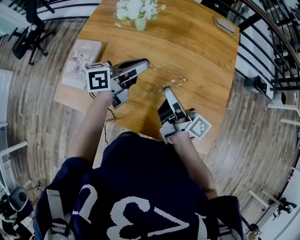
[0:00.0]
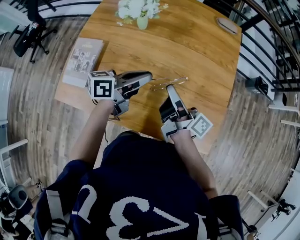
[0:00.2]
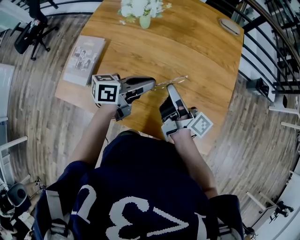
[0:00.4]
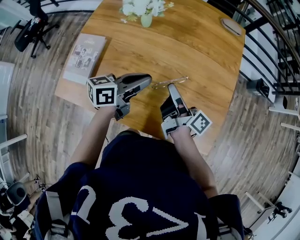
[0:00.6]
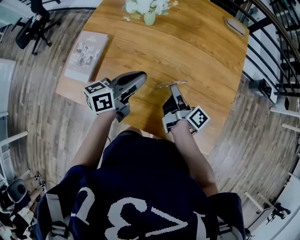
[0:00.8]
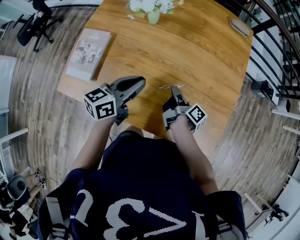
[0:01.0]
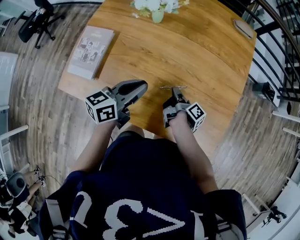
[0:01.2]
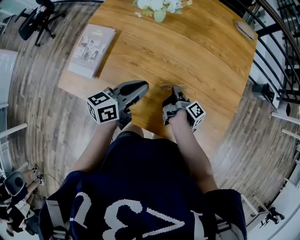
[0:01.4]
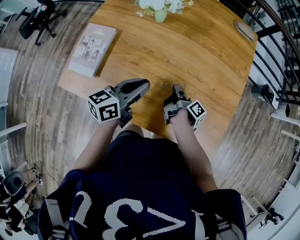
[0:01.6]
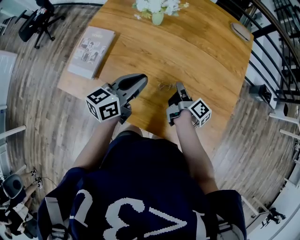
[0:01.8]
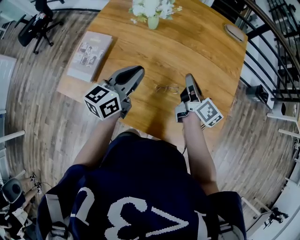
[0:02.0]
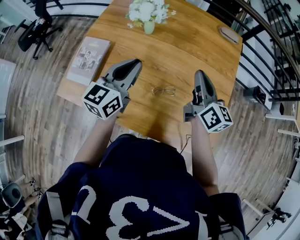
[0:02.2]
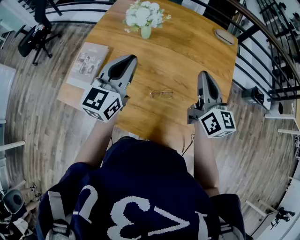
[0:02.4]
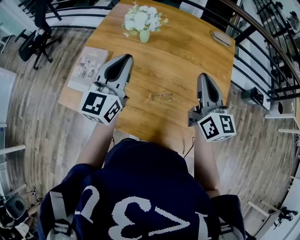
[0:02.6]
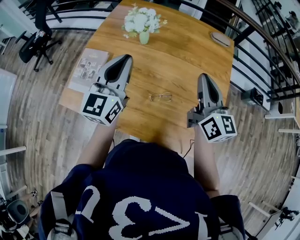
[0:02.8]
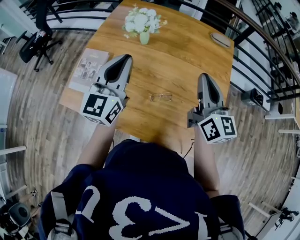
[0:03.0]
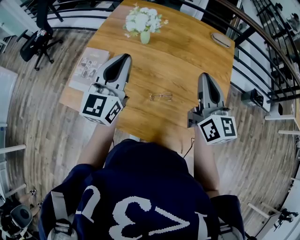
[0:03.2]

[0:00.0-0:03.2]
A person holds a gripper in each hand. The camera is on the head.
0:00.0 to 0:01.6: The right gripper goes about 20 cm downward, and angles its fingers downward, by roughly 30 degrees; the left gripper travels backward and downward by about 10 cm.
0:01.6 to 0:03.2: The left gripper moves upward, some 20 cm, and turns by roughly 50 degrees. Meanwhile the right gripper goes roughly 35 cm upward, and rolls counterclockwise, seen from behind, by roughly 80 degrees.

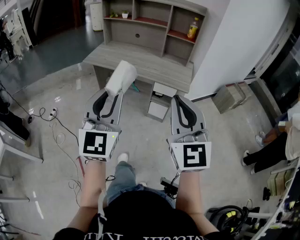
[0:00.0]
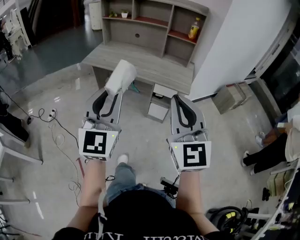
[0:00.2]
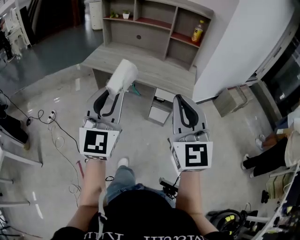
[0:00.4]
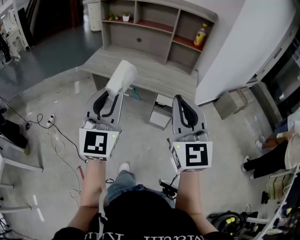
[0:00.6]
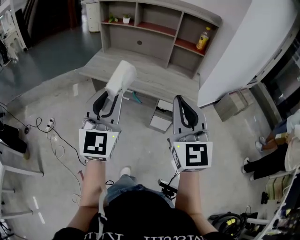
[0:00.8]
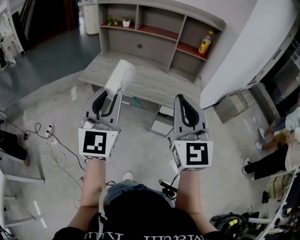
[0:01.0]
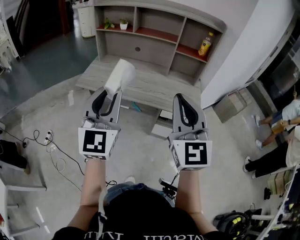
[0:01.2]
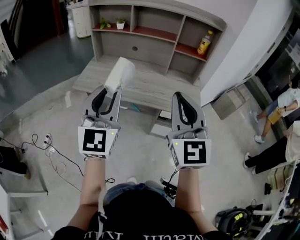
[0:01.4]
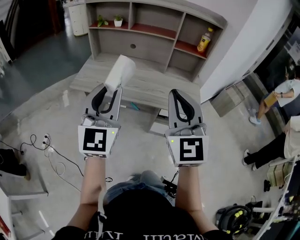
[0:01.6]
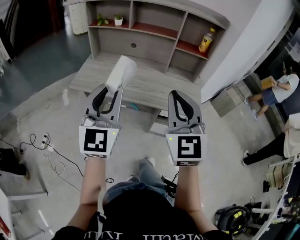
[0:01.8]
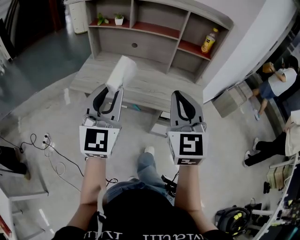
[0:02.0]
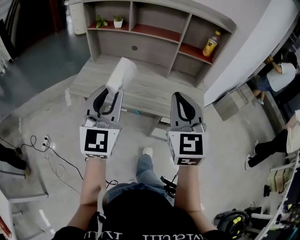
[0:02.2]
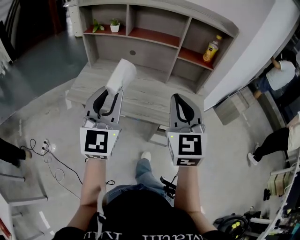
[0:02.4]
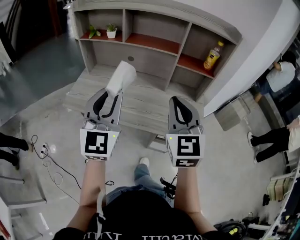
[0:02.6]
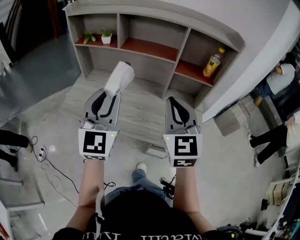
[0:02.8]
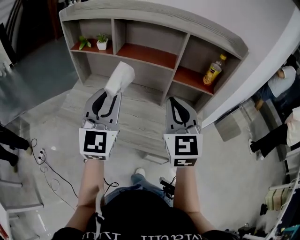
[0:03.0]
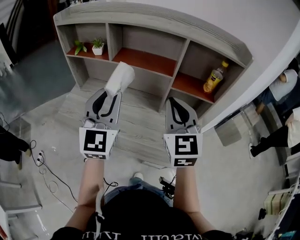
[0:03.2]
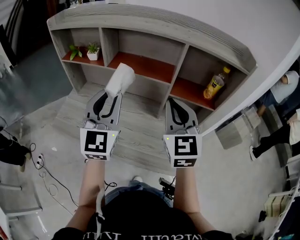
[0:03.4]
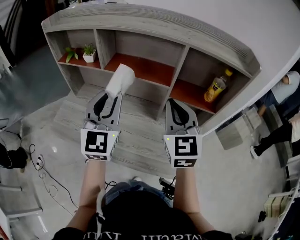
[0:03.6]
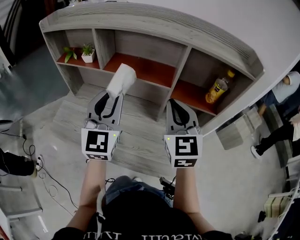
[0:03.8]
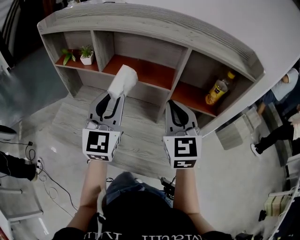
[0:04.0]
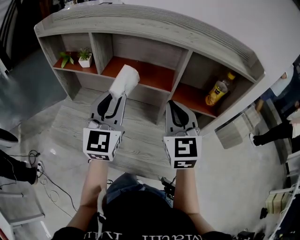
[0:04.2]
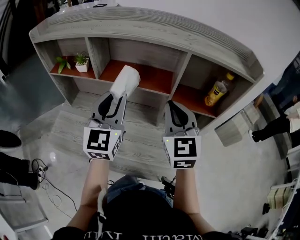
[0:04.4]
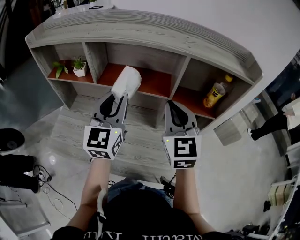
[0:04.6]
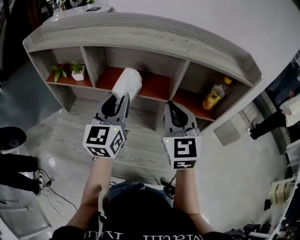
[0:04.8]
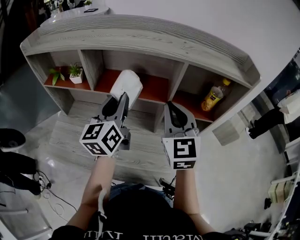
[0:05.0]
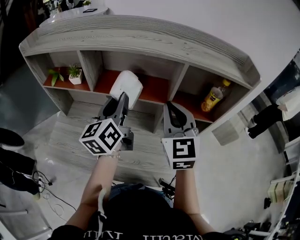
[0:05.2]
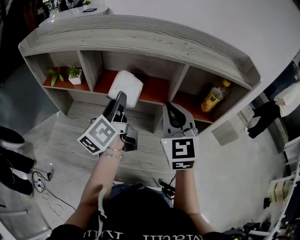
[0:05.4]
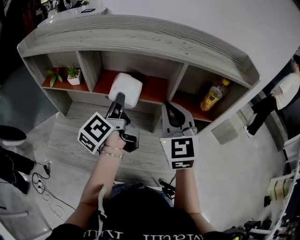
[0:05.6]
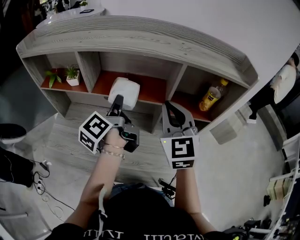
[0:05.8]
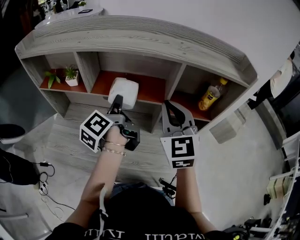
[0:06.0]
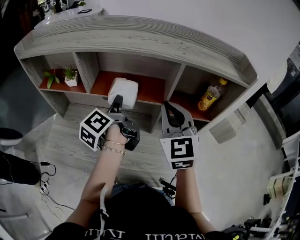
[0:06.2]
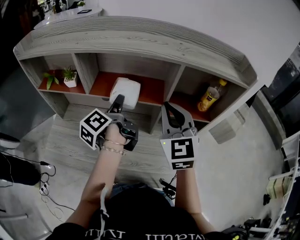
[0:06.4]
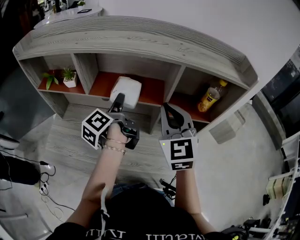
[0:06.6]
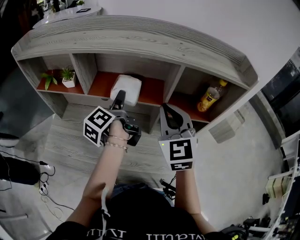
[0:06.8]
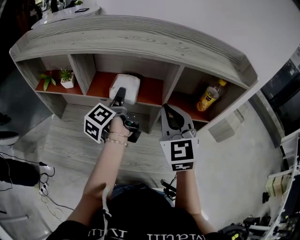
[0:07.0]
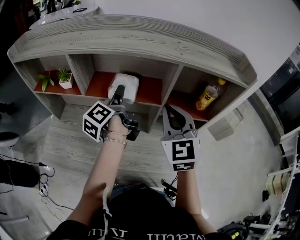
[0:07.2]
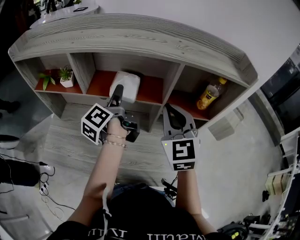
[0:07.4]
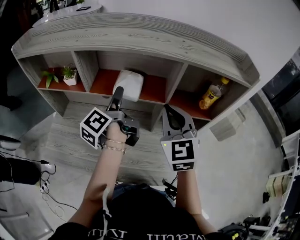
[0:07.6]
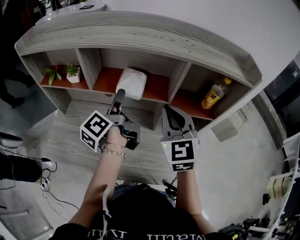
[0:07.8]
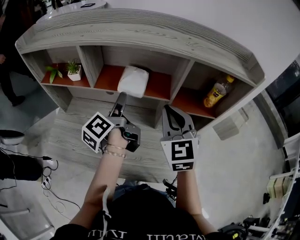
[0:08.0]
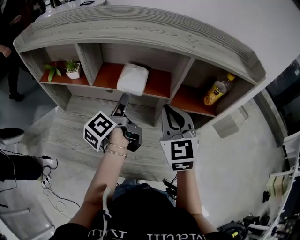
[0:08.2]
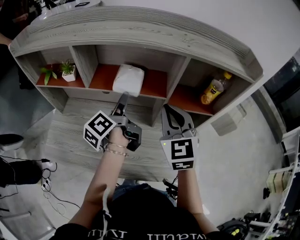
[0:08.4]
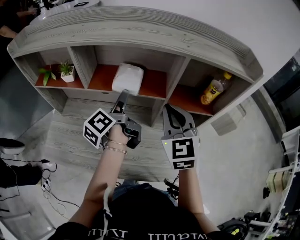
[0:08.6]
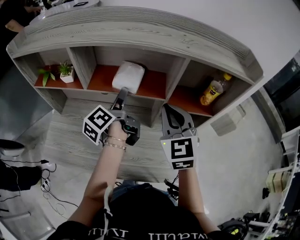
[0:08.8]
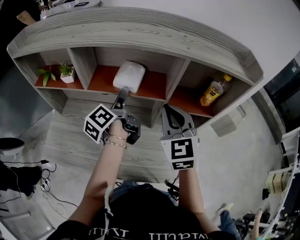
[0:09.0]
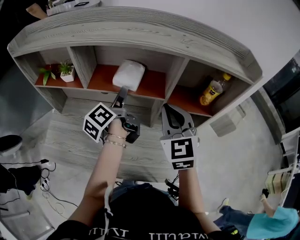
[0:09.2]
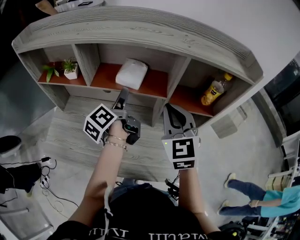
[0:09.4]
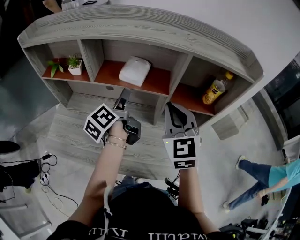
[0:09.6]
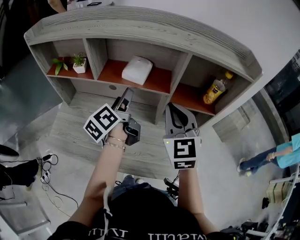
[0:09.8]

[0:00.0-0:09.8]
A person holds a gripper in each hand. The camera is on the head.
0:00.0 to 0:01.4: Both grippers travel together forward, some 30 cm.
0:01.4 to 0:02.8: The two grippers go about 25 cm forward.
0:02.8 to 0:04.2: Both grippers travel together forward, about 20 cm.
0:04.2 to 0:05.6: The left gripper moves forward, about 10 cm, and rolls counterclockwise, seen from behind, by approximately 80 degrees.
0:05.6 to 0:07.0: The left gripper heads downward and forward, covering approximately 10 cm, and opens up.
0:07.0 to 0:09.8: There are only small adjustments of the grippers.

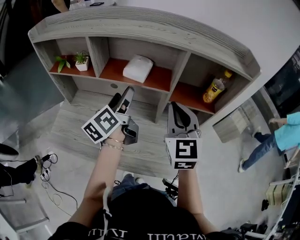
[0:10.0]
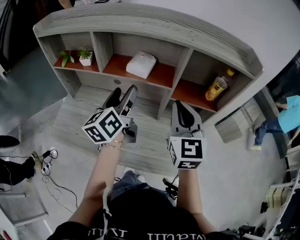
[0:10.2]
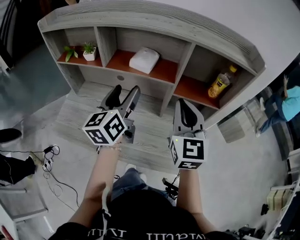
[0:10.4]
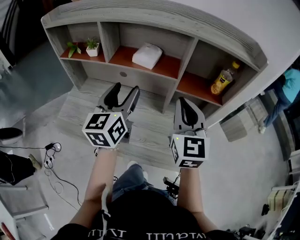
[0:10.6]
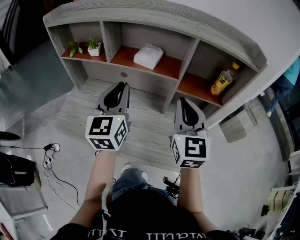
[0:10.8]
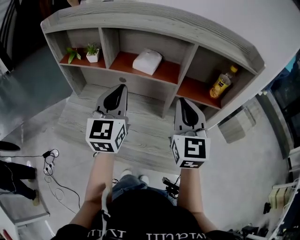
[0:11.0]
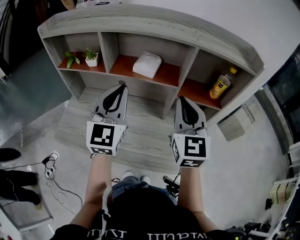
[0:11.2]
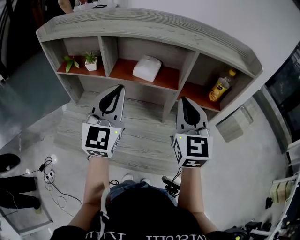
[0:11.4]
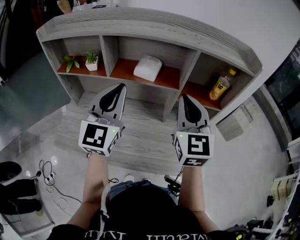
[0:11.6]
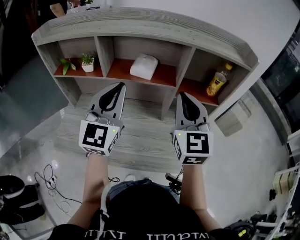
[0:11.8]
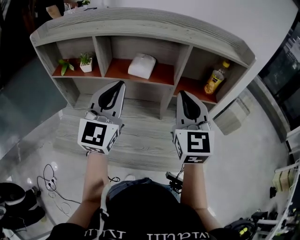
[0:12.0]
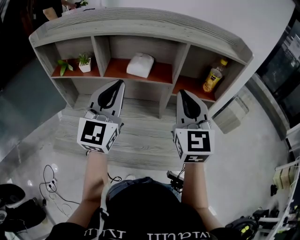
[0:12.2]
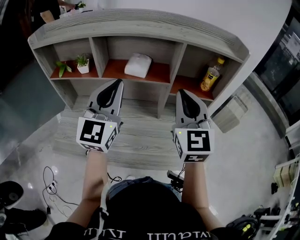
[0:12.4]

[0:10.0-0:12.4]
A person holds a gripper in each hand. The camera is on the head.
0:10.0 to 0:11.2: The left gripper is displaced upward and backward by about 10 cm, twists some 60 degrees clockwise, seen from behind, and closes up.
0:11.2 to 0:12.4: The grippers move only a little.

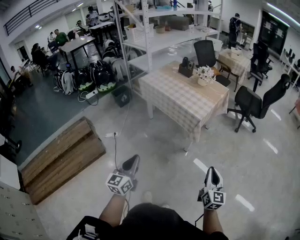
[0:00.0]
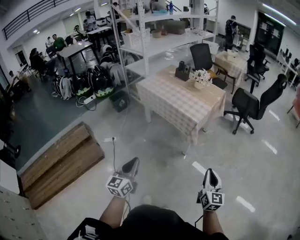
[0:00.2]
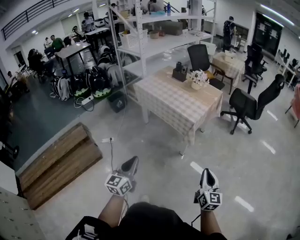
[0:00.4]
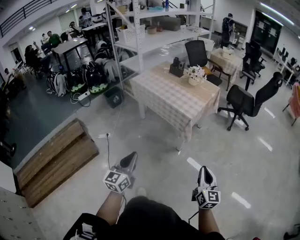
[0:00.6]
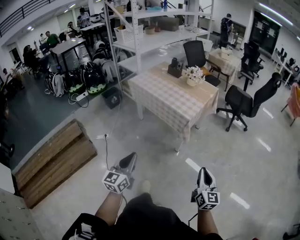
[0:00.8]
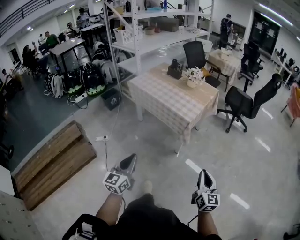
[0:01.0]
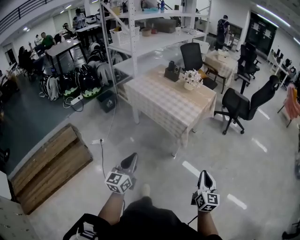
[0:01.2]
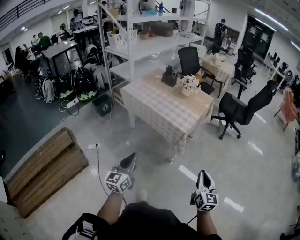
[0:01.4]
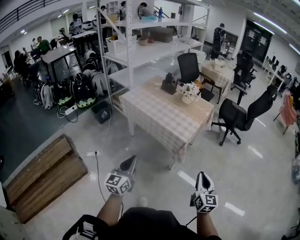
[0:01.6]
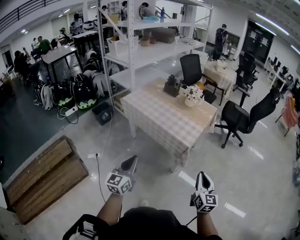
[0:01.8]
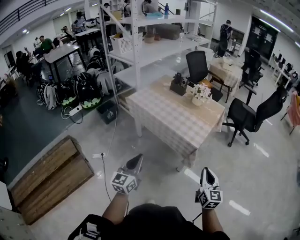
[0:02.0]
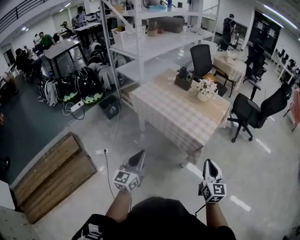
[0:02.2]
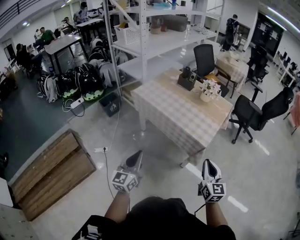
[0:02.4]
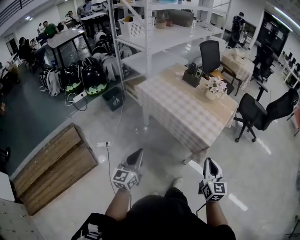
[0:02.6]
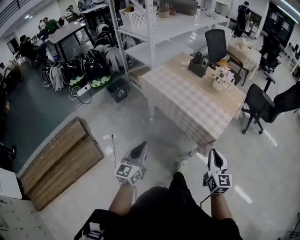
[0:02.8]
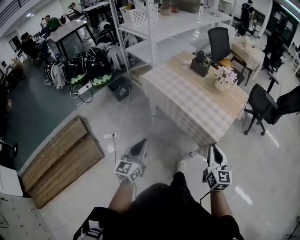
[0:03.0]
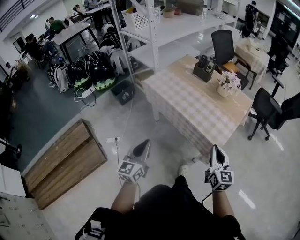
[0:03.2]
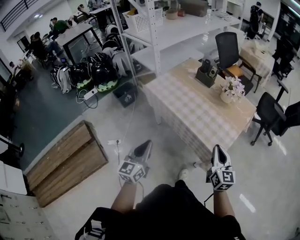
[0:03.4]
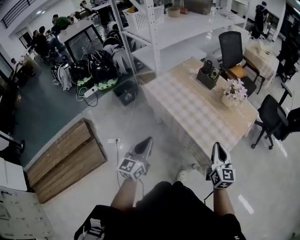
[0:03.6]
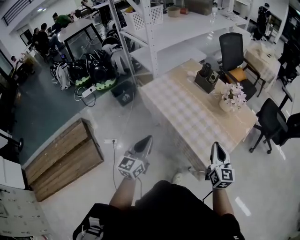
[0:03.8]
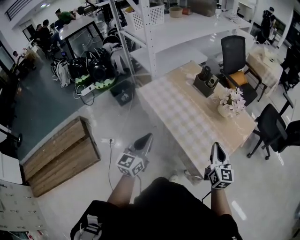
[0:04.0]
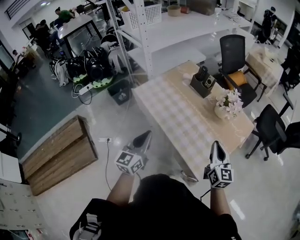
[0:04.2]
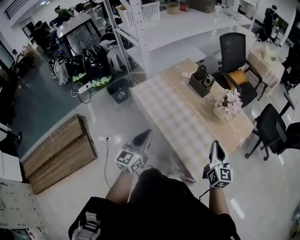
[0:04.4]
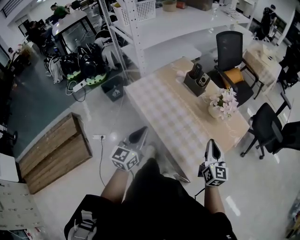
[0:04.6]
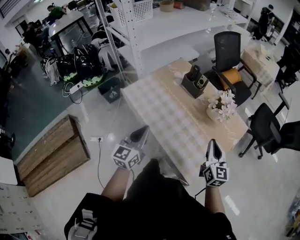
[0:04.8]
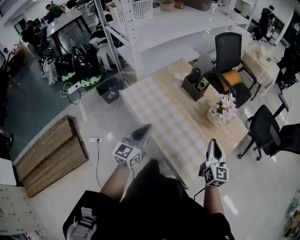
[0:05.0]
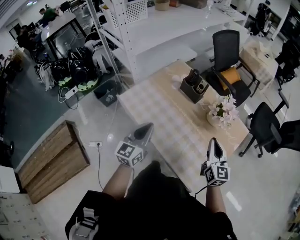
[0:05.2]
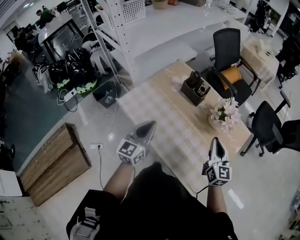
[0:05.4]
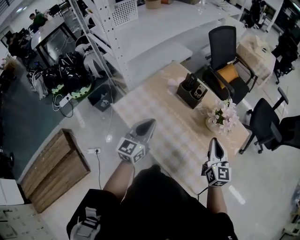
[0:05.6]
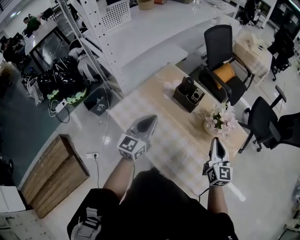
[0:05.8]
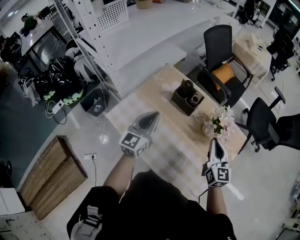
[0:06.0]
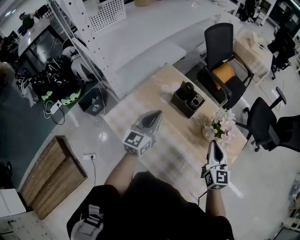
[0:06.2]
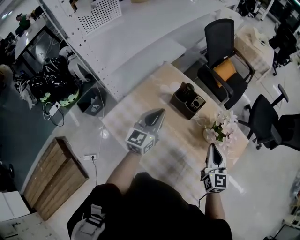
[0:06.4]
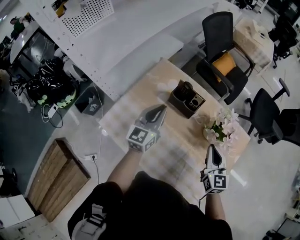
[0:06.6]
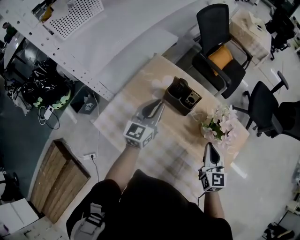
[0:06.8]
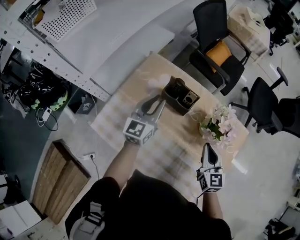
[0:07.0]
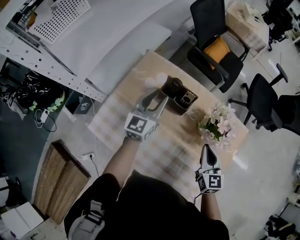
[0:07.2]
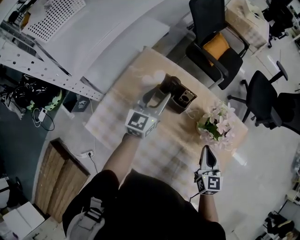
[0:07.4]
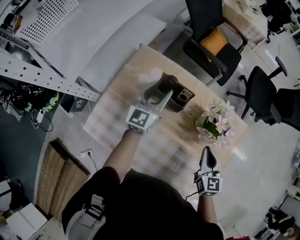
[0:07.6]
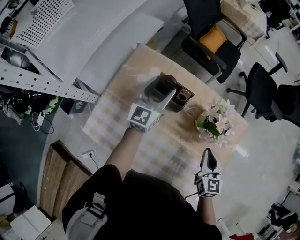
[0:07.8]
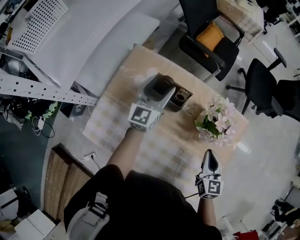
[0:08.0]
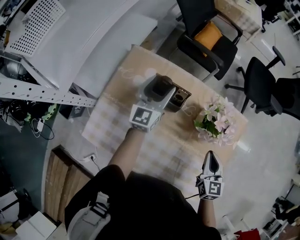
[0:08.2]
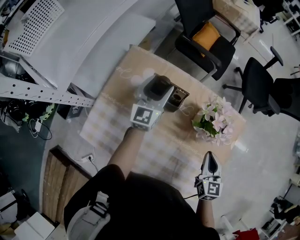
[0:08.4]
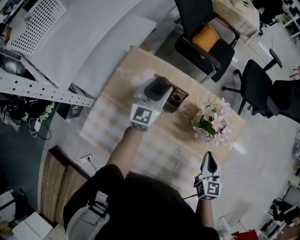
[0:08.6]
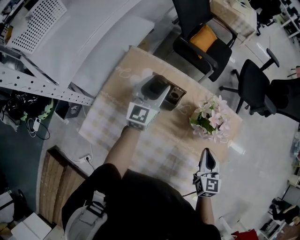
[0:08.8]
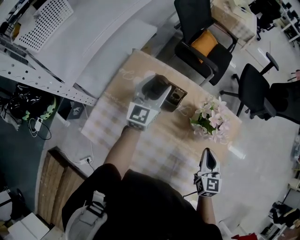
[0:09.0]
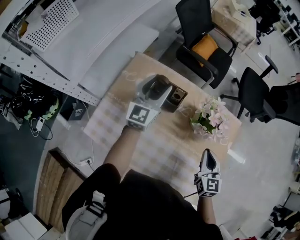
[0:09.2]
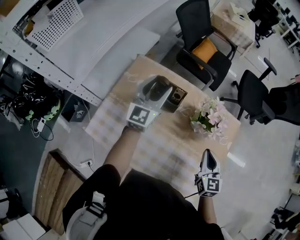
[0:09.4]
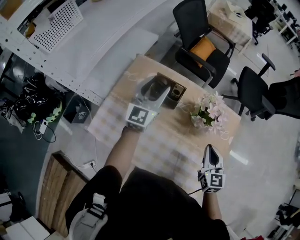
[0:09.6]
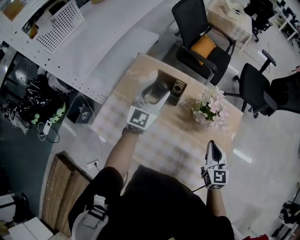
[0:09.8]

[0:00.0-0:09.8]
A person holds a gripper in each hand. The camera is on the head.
0:00.0 to 0:01.4: The right gripper is displaced forward by some 10 cm. Meanwhile the left gripper moves forward, about 15 cm.
0:01.4 to 0:02.8: The two grippers go roughly 25 cm forward and to the left.
0:02.8 to 0:04.2: The left gripper is displaced forward and to the right by about 30 cm. Meanwhile the right gripper travels forward by roughly 35 cm.
0:04.2 to 0:05.6: Both grippers travel together forward, roughly 20 cm.
0:05.6 to 0:07.0: The left gripper is displaced forward by about 25 cm; the right gripper travels forward and downward by approximately 15 cm.
0:07.0 to 0:08.4: The left gripper shifts approximately 10 cm forward and to the right, and opens up, while the right gripper travels to the right by approximately 5 cm.
0:08.4 to 0:09.8: The left gripper heads backward and upward, covering roughly 15 cm. The right gripper heads upward, covering roughly 5 cm.
